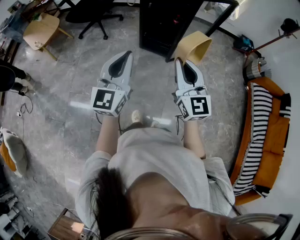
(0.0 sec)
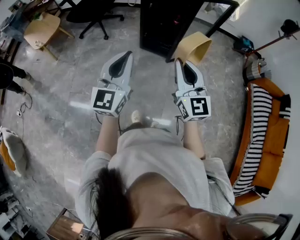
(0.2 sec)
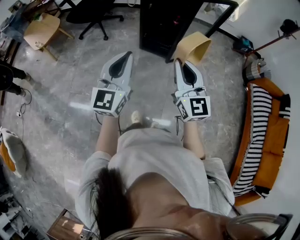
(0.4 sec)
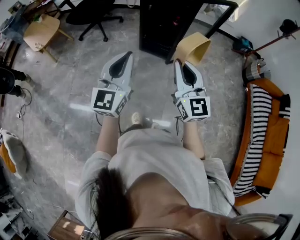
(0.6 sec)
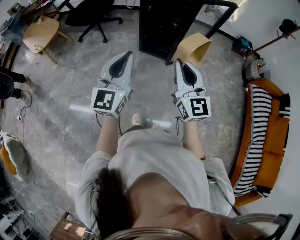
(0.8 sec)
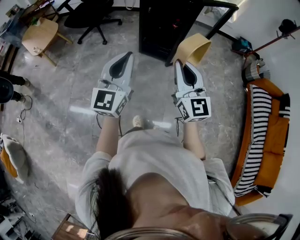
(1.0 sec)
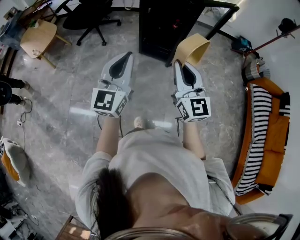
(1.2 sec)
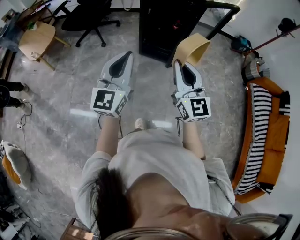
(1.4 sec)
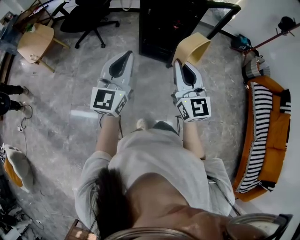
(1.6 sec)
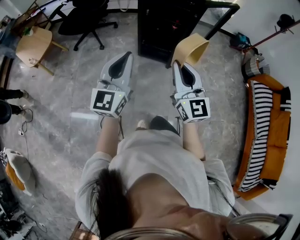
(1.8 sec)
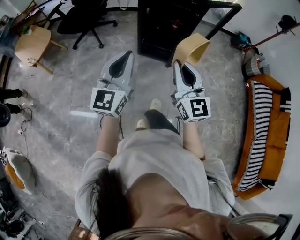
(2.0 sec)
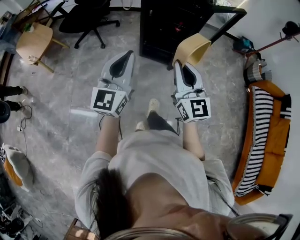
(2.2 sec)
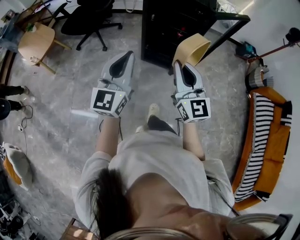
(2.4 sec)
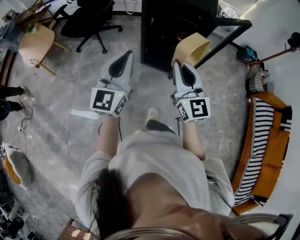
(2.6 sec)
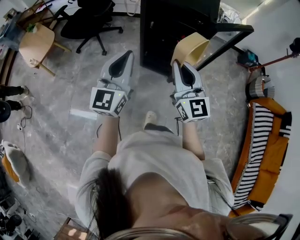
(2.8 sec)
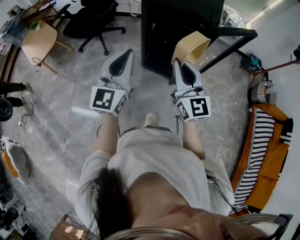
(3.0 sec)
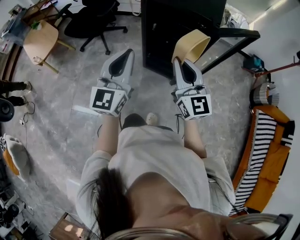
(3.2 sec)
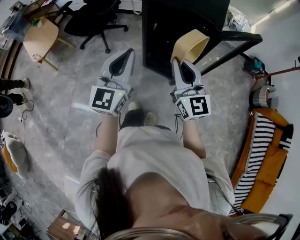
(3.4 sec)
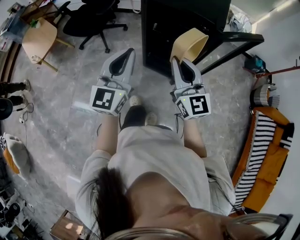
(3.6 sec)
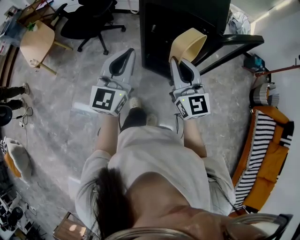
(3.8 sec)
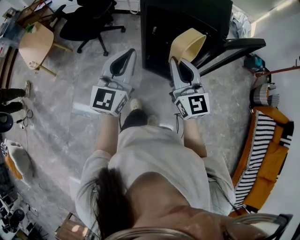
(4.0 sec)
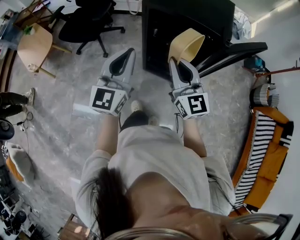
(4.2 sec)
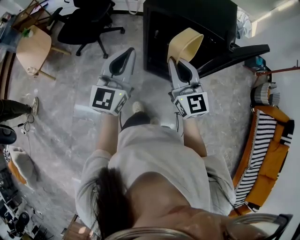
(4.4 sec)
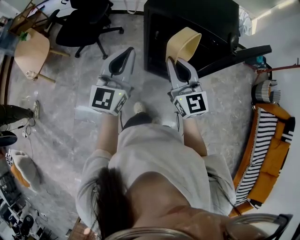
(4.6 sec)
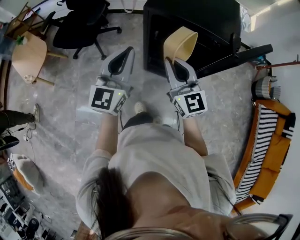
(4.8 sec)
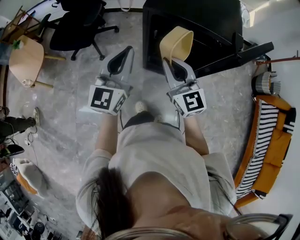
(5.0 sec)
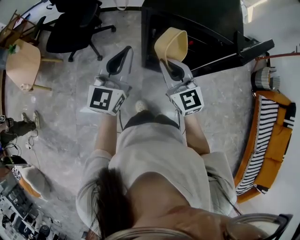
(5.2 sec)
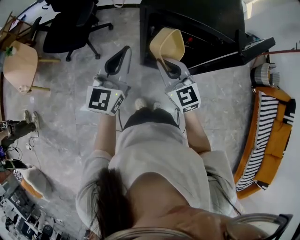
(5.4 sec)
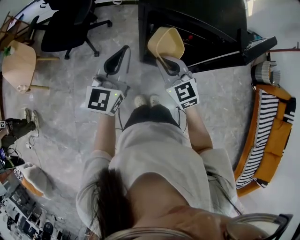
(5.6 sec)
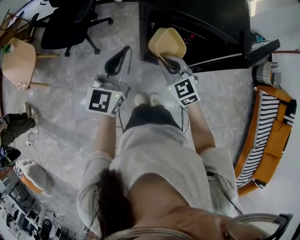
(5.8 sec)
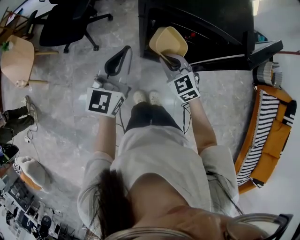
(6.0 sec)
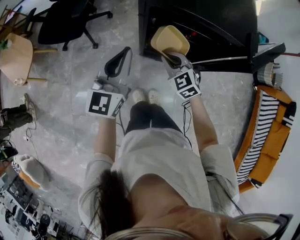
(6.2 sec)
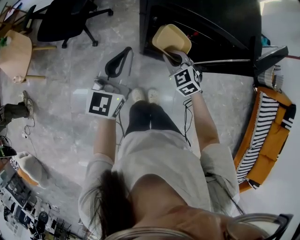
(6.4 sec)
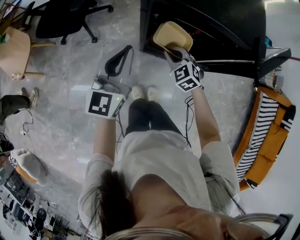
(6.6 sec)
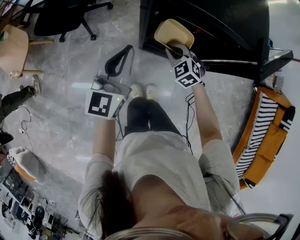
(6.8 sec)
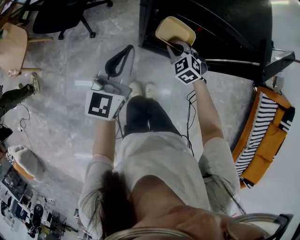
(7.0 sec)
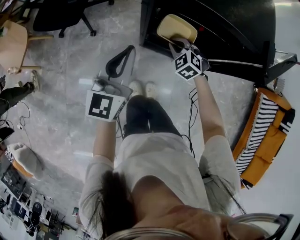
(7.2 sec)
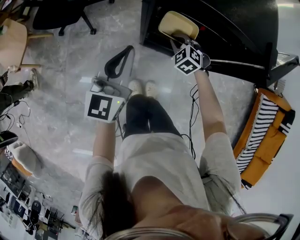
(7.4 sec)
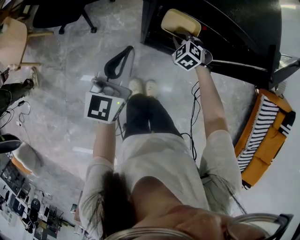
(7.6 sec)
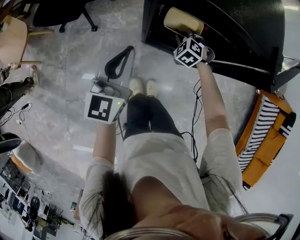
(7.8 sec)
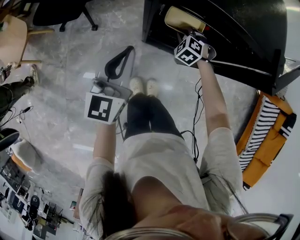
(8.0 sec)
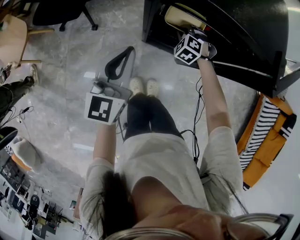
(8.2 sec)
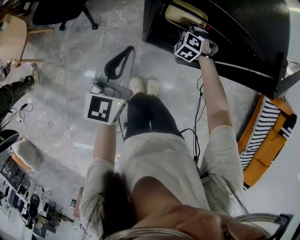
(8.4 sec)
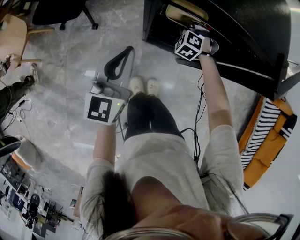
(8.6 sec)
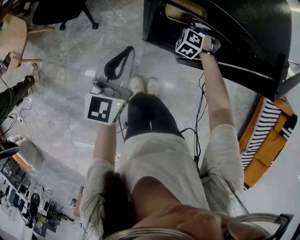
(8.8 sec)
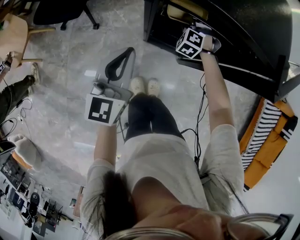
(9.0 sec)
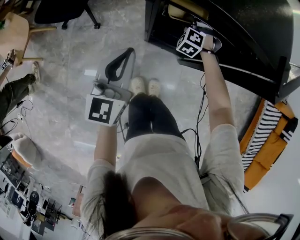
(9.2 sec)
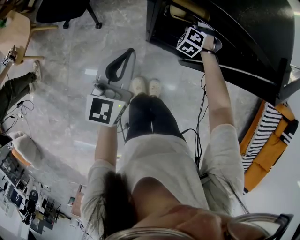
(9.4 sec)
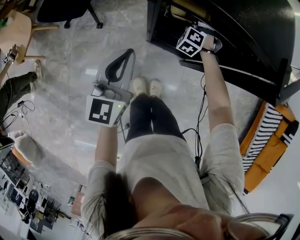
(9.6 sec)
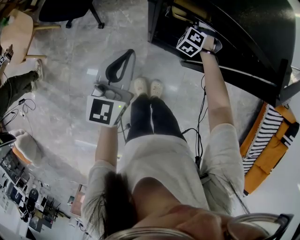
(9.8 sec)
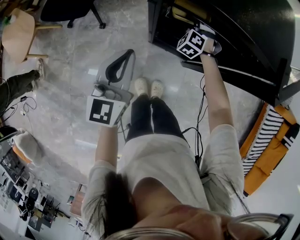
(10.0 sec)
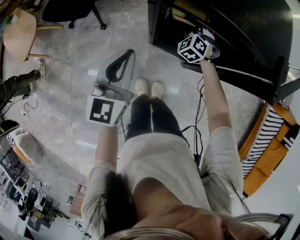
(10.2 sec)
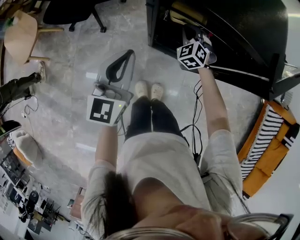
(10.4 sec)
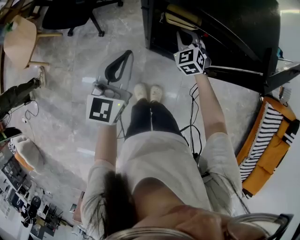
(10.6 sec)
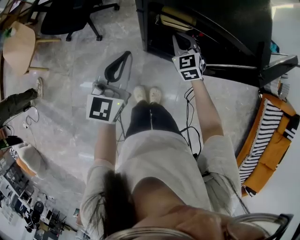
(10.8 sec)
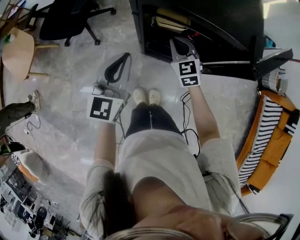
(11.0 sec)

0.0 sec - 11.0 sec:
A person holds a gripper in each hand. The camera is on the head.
0.0 sec - 1.6 sec: The two grippers go about 10 cm forward and to the left.
1.6 sec - 3.2 sec: The grippers both shift forward by about 25 cm.
3.2 sec - 4.8 sec: The left gripper shifts roughly 20 cm forward; the right gripper heads forward and to the left, covering some 25 cm.
4.8 sec - 6.2 sec: The right gripper heads downward and forward, covering roughly 20 cm, and angles its fingers downward, by about 40 degrees. The left gripper travels downward and forward by about 10 cm.
6.2 sec - 7.8 sec: The right gripper heads downward and forward, covering approximately 20 cm, and turns by approximately 30 degrees; the left gripper moves downward, approximately 10 cm.
7.8 sec - 9.4 sec: The right gripper heads forward, covering some 5 cm.
9.4 sec - 11.0 sec: The right gripper goes some 20 cm upward and backward, and rotates around the line of its fingers by roughly 50 degrees, clockwise from behind, while the left gripper heads upward, covering roughly 5 cm.

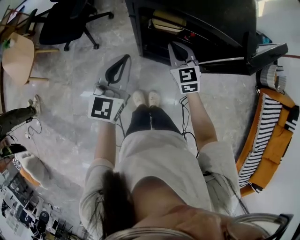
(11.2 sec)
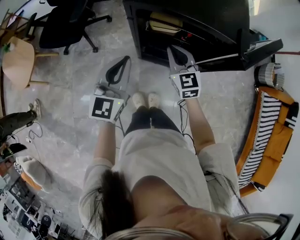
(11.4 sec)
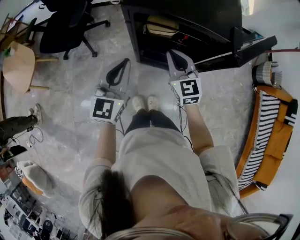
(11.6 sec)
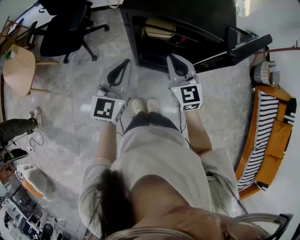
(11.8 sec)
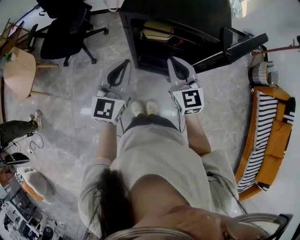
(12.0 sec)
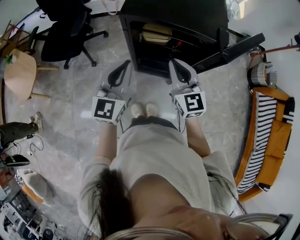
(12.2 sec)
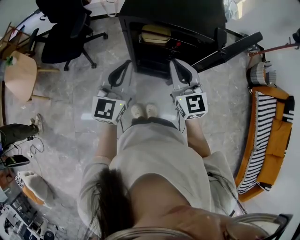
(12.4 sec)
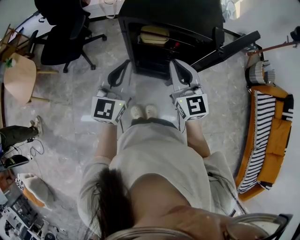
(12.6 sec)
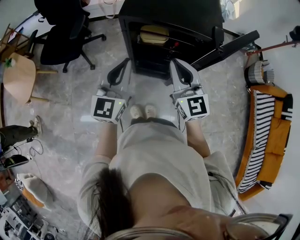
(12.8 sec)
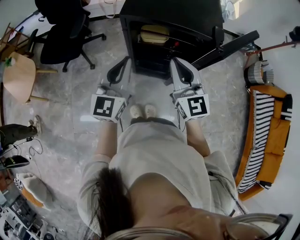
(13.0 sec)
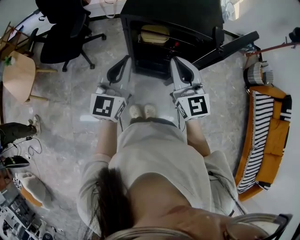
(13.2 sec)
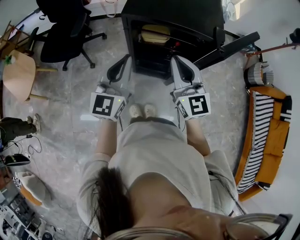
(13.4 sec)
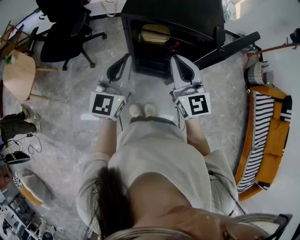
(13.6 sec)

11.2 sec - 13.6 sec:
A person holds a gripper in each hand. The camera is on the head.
11.2 sec - 12.4 sec: The right gripper heads upward and backward, covering approximately 20 cm, while the left gripper travels upward by approximately 10 cm.
12.4 sec - 13.6 sec: There are only small adjustments of the grippers.

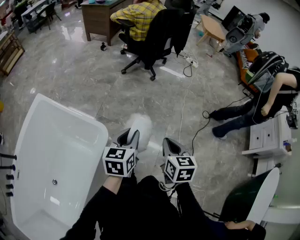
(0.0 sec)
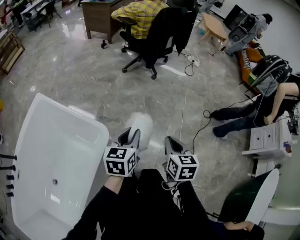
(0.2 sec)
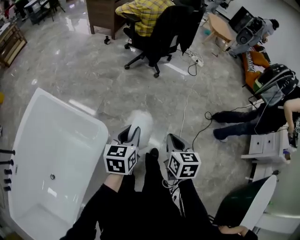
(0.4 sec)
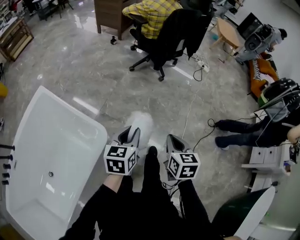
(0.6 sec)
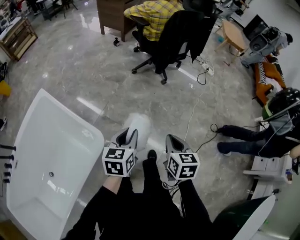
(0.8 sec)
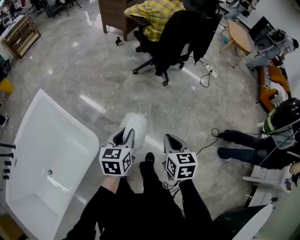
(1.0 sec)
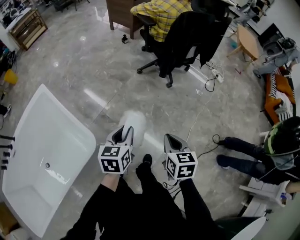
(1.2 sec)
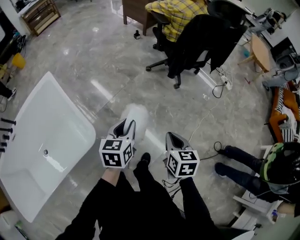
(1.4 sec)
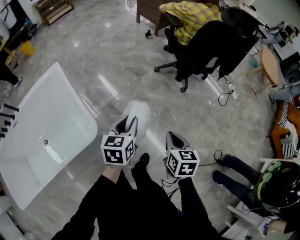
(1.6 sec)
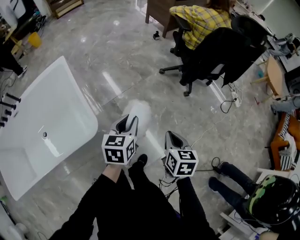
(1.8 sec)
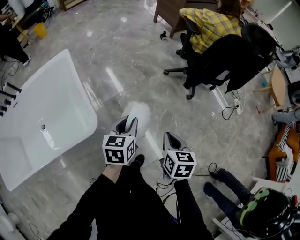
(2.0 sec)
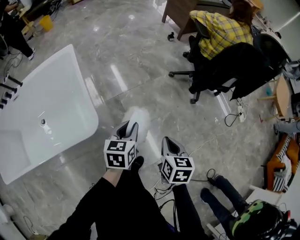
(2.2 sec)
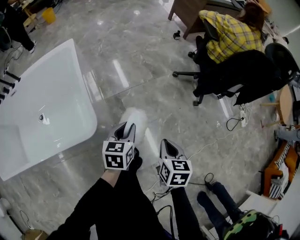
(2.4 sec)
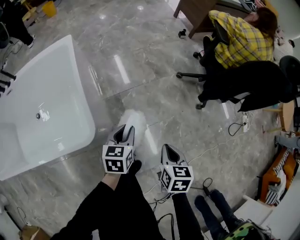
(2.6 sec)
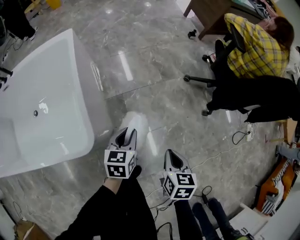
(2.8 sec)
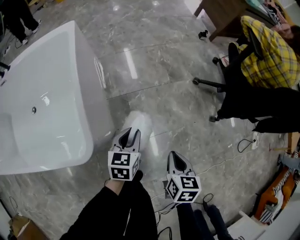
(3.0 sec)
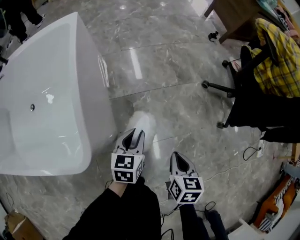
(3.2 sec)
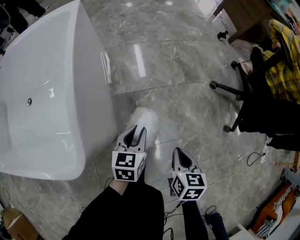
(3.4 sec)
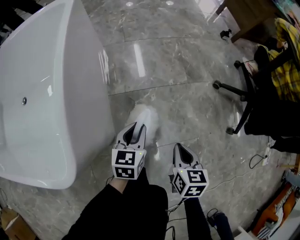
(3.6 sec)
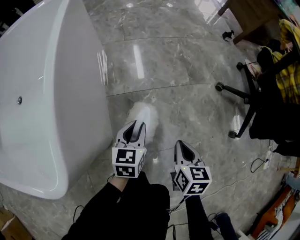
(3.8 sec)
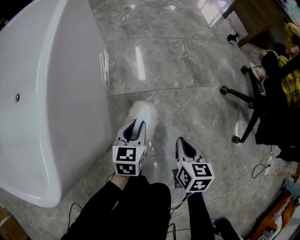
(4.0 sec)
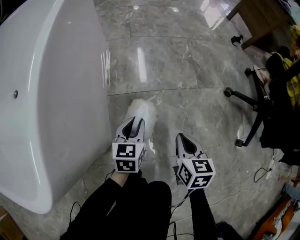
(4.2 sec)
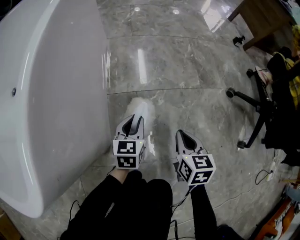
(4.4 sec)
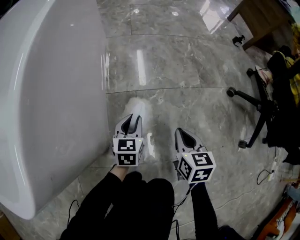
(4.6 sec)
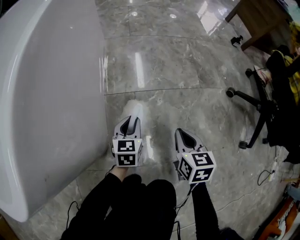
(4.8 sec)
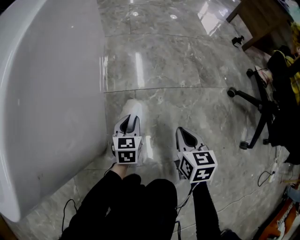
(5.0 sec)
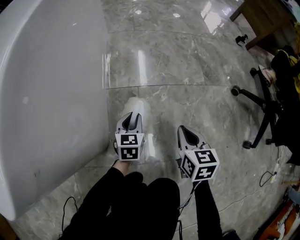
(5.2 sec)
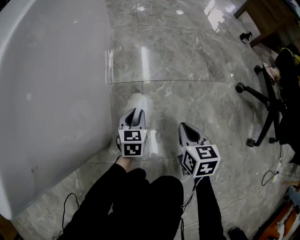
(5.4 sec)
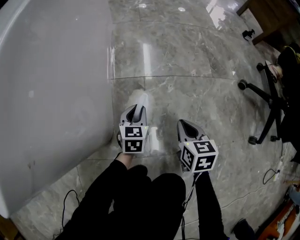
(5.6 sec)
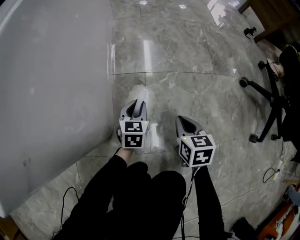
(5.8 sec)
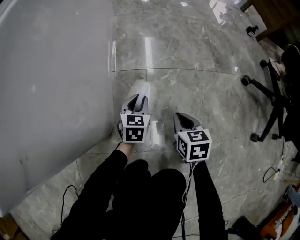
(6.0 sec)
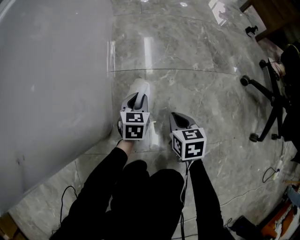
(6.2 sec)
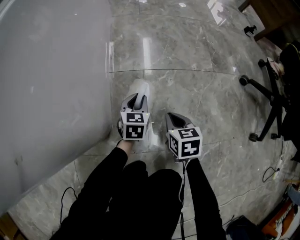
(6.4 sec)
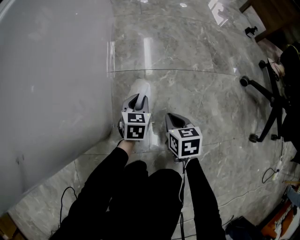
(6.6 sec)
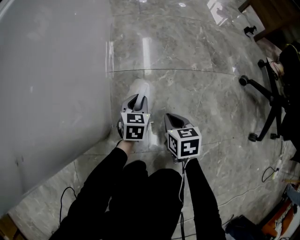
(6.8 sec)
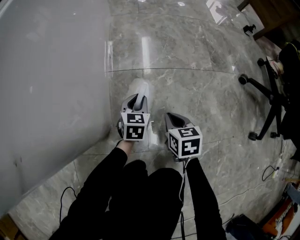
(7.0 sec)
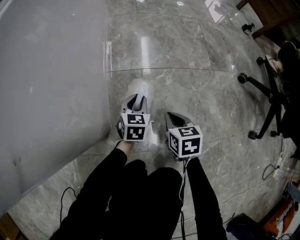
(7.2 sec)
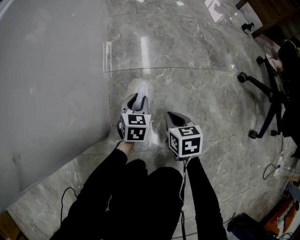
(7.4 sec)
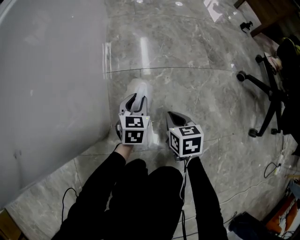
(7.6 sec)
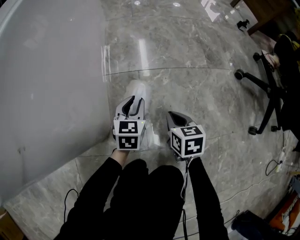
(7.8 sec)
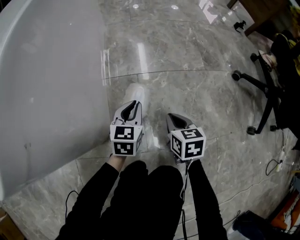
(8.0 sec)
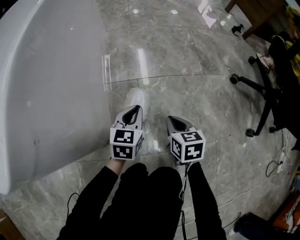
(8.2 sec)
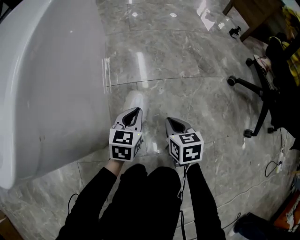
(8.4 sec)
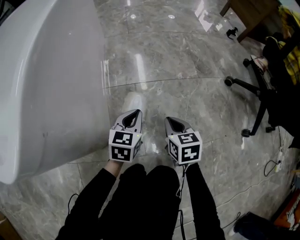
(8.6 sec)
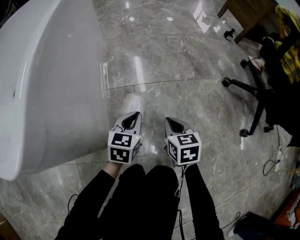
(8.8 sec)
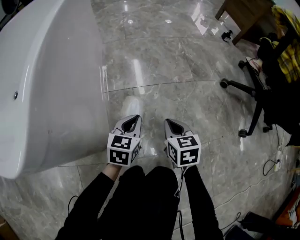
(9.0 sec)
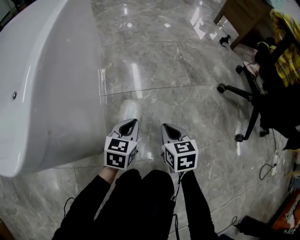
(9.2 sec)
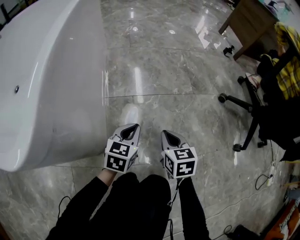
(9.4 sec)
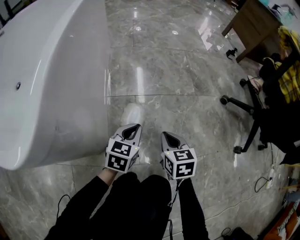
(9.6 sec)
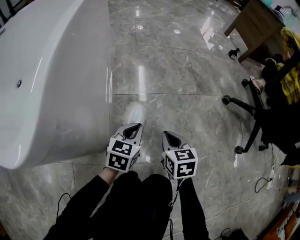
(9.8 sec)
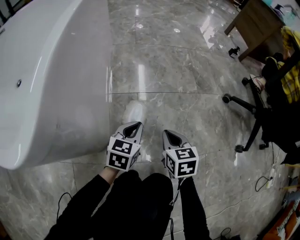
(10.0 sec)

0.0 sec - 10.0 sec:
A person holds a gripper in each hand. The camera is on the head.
0.0 sec - 1.4 sec: The left gripper shifts by approximately 20 cm, and swivels some 30 degrees; the right gripper ends up roughly 25 cm from where it was, and changes its angle by roughly 20 degrees.
1.4 sec - 2.8 sec: The left gripper heads downward, forward and to the left, covering approximately 25 cm, and turns by about 30 degrees. The right gripper heads forward, downward and to the left, covering roughly 20 cm, and swivels about 20 degrees.
2.8 sec - 4.2 sec: The right gripper moves downward and forward, some 40 cm; the left gripper travels downward by about 35 cm.
4.2 sec - 5.8 sec: The grippers both shift downward by roughly 15 cm.
5.8 sec - 7.2 sec: The grippers move only a little.
7.2 sec - 8.6 sec: The left gripper shifts about 15 cm upward, and closes its fingers. Meanwhile the right gripper moves upward, roughly 10 cm.
8.6 sec - 10.0 sec: The grippers move only a little.
